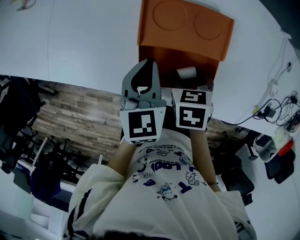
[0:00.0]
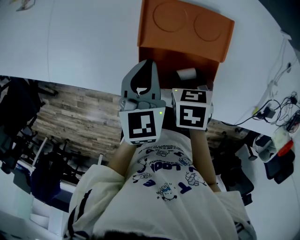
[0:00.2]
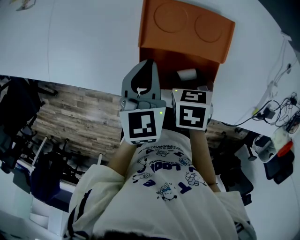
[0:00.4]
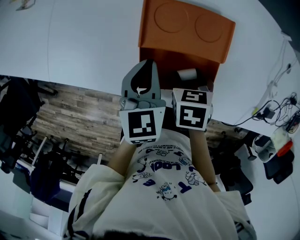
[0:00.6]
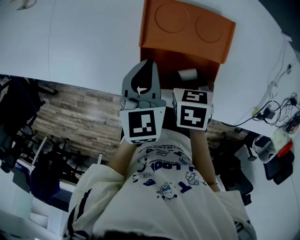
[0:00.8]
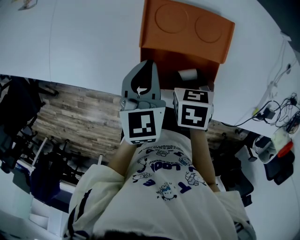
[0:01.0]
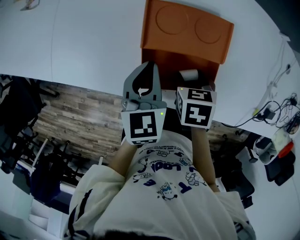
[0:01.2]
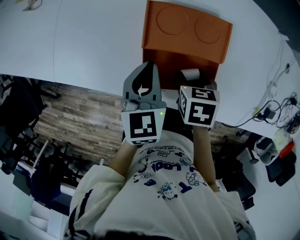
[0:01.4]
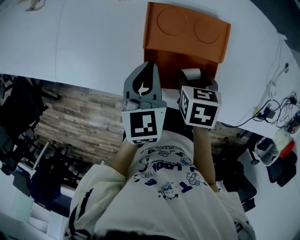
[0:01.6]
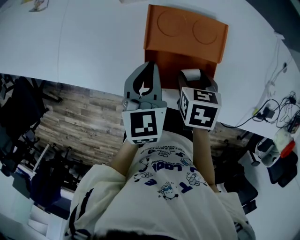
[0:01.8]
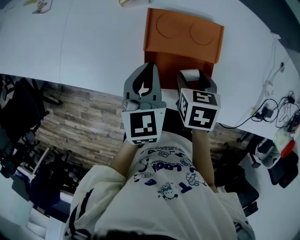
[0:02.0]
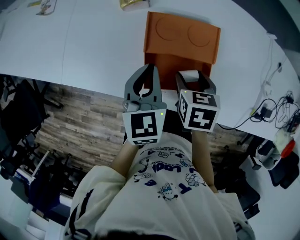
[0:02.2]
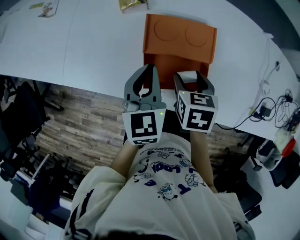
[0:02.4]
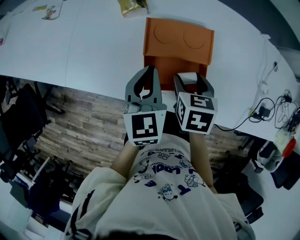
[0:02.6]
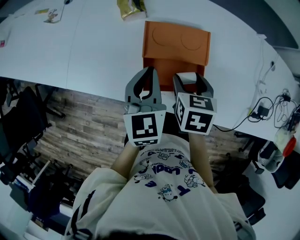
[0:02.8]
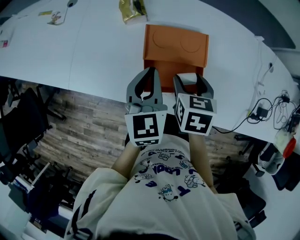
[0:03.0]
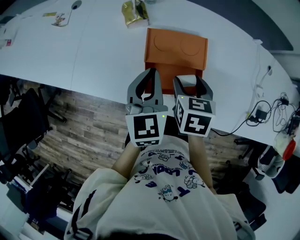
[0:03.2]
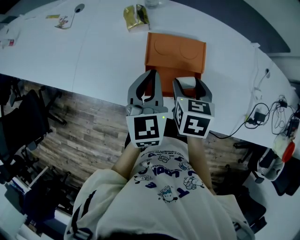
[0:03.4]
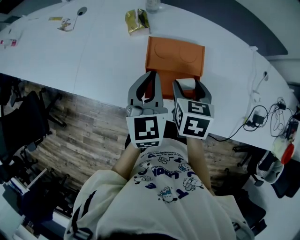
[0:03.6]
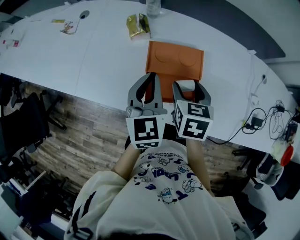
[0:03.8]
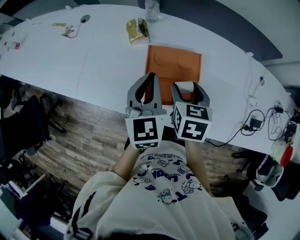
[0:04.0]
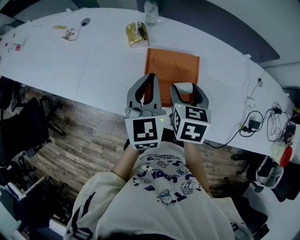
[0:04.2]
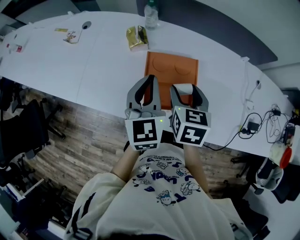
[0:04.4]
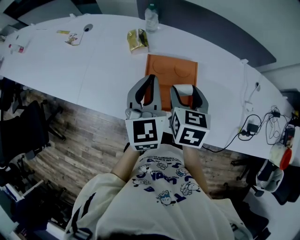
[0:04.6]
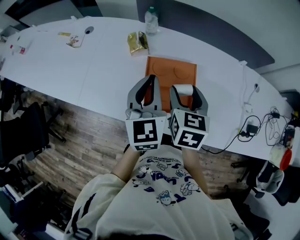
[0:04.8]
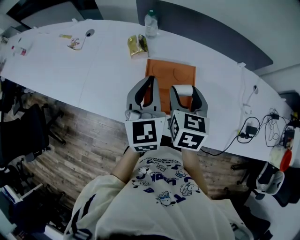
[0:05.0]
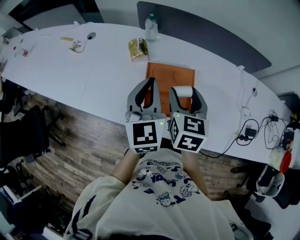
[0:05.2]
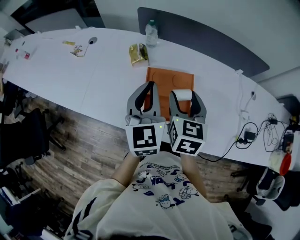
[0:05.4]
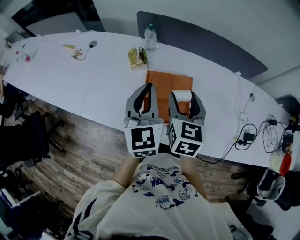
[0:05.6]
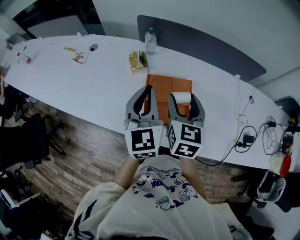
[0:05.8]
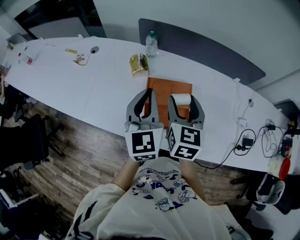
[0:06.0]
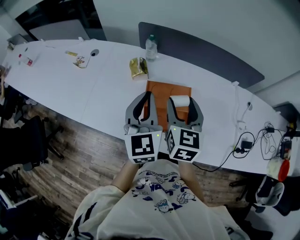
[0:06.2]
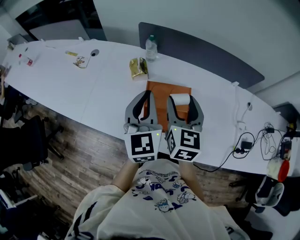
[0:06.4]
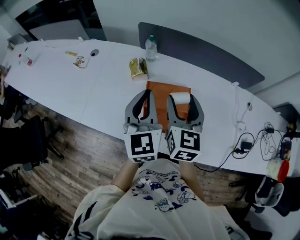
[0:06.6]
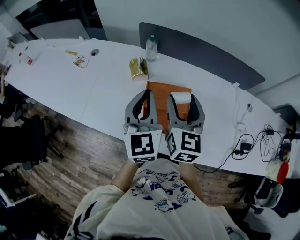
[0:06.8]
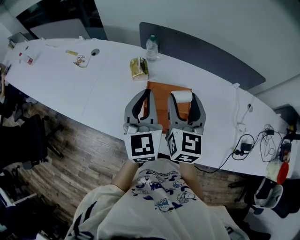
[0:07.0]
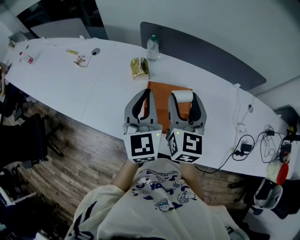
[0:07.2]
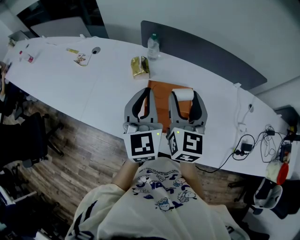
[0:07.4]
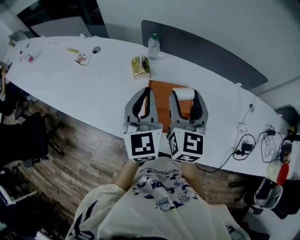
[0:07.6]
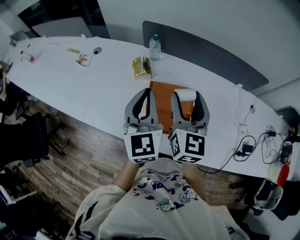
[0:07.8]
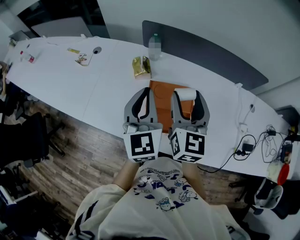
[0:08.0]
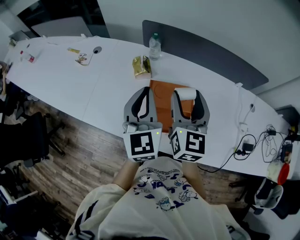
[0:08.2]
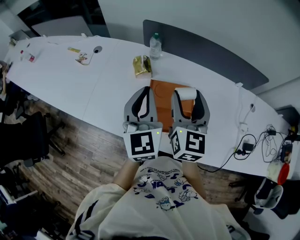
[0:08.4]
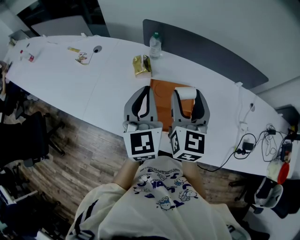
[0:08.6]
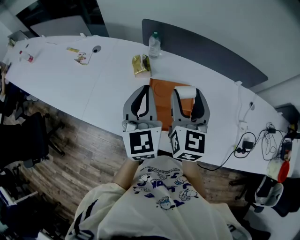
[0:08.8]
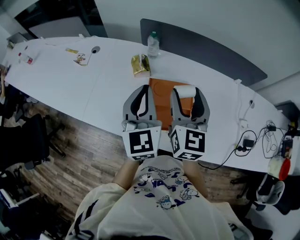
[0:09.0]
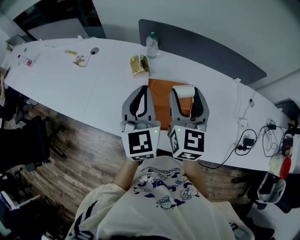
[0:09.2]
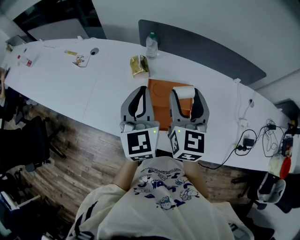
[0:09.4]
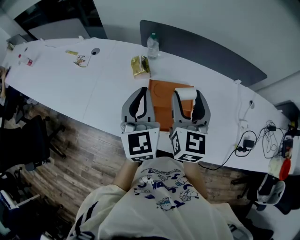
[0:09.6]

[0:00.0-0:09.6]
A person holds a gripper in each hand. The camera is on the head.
0:00.0 to 0:01.6: The grippers make only small movements.
0:01.6 to 0:03.2: Both grippers travel together upward, some 10 cm.
0:03.2 to 0:04.8: The grippers both shift upward by roughly 10 cm.
0:04.8 to 0:06.4: The right gripper heads upward, covering about 5 cm.
0:06.4 to 0:08.0: The grippers stay close to where they were, moving slightly.
0:08.0 to 0:09.6: Neither gripper changes place.

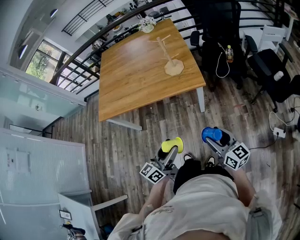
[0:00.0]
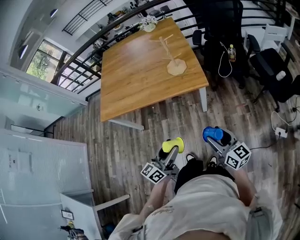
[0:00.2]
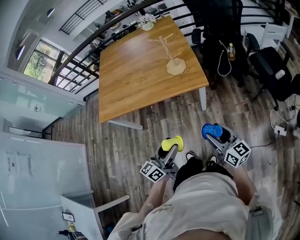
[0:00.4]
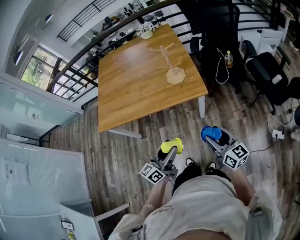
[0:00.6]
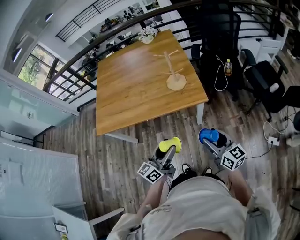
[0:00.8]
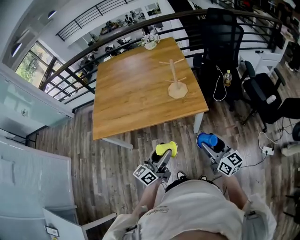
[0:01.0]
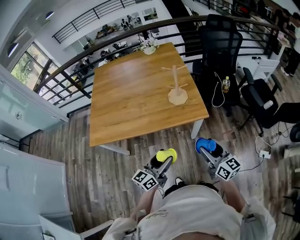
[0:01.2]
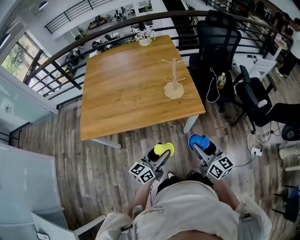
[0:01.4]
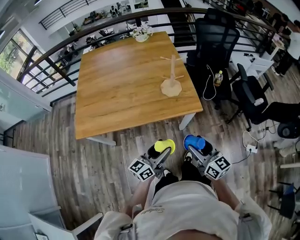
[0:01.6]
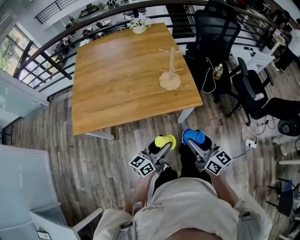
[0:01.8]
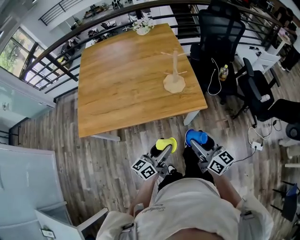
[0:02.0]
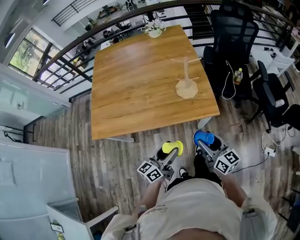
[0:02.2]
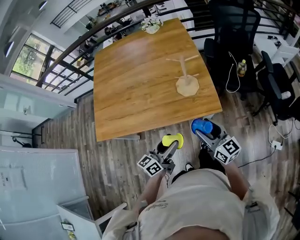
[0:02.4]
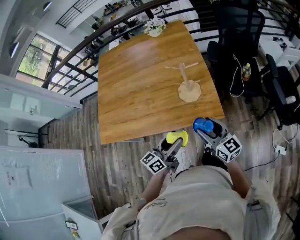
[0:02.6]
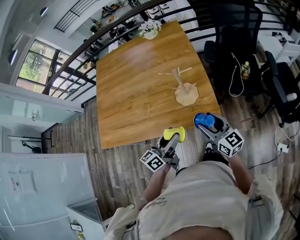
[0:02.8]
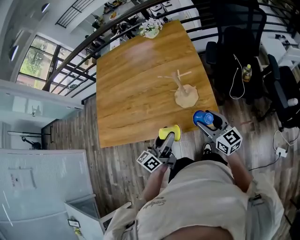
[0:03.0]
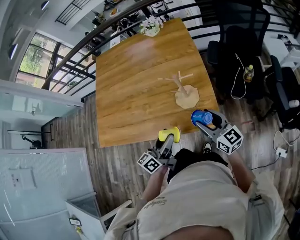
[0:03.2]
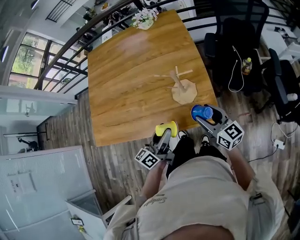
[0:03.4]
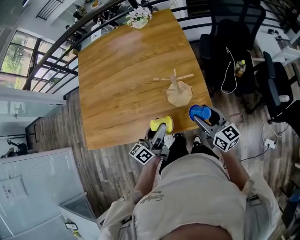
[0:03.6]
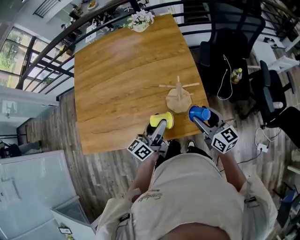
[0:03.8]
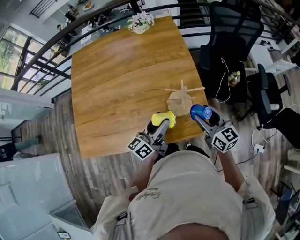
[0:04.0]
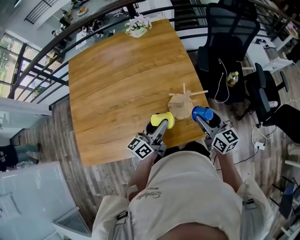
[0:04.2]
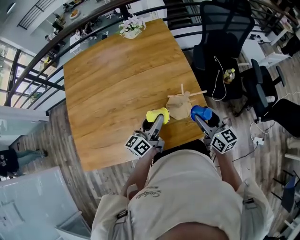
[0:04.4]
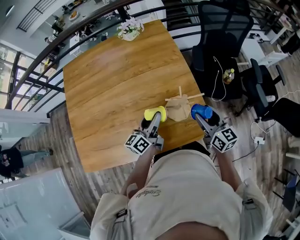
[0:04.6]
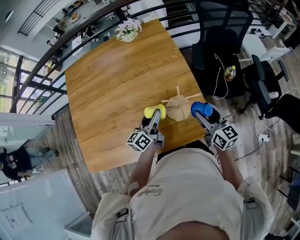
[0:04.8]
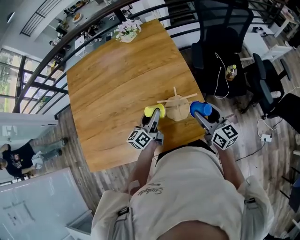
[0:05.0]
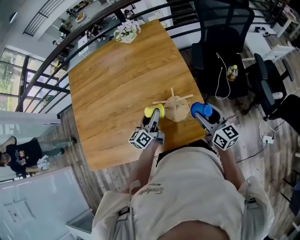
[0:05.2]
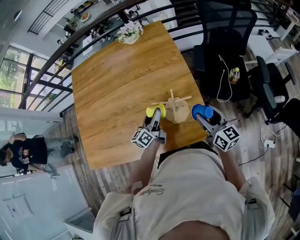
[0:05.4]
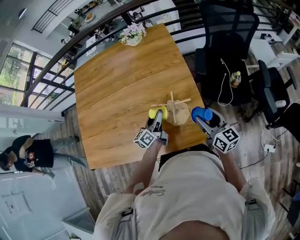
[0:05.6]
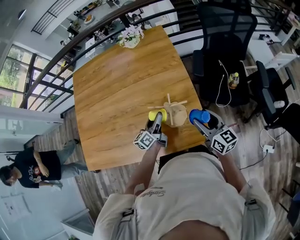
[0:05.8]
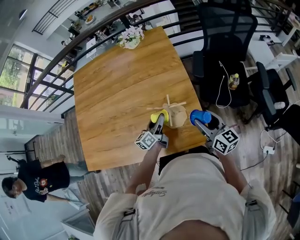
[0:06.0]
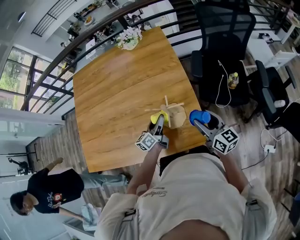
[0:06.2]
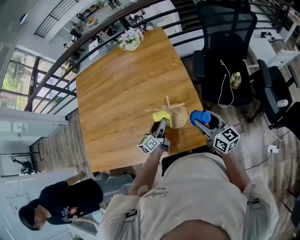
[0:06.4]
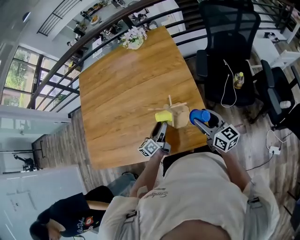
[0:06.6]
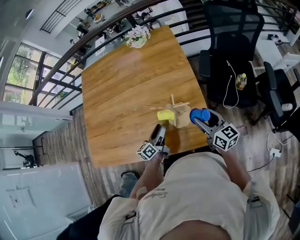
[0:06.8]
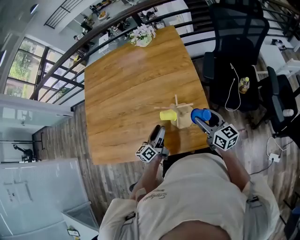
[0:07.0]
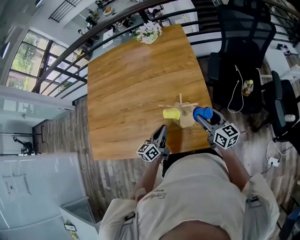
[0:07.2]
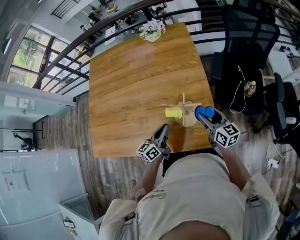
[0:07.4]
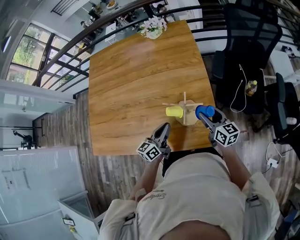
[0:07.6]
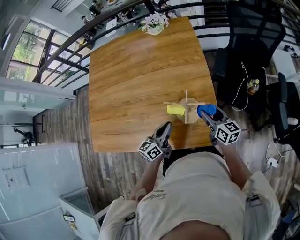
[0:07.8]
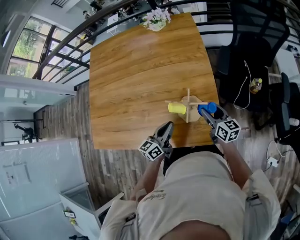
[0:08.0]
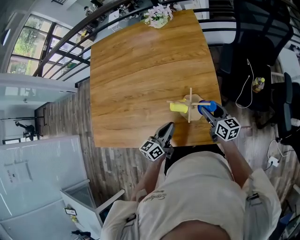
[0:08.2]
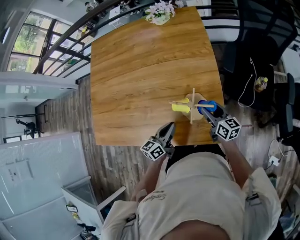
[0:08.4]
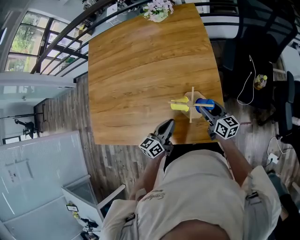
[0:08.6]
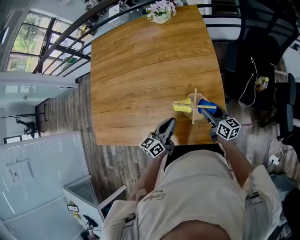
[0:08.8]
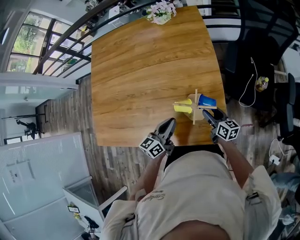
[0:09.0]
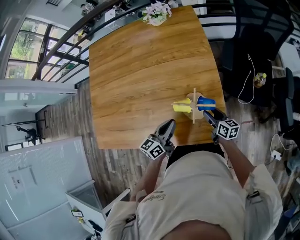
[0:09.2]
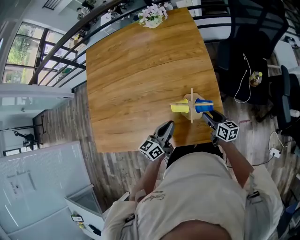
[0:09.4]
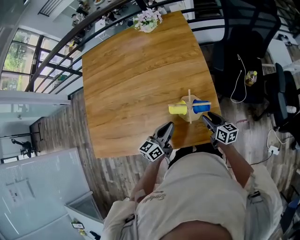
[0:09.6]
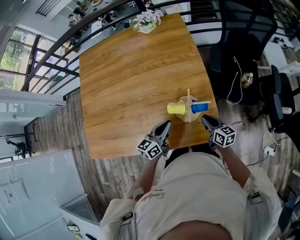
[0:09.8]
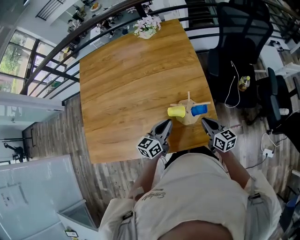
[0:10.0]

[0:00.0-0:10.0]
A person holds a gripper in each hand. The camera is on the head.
0:00.0 to 0:01.4: The grippers both shift forward and to the left by roughly 20 cm.
0:01.4 to 0:02.8: Both grippers travel together forward, about 20 cm.
0:02.8 to 0:04.2: The two grippers go roughly 15 cm forward.
0:04.2 to 0:05.8: The right gripper is displaced to the right by approximately 5 cm. Meanwhile the left gripper heads downward and forward, covering roughly 15 cm.
0:05.8 to 0:07.2: The right gripper changes place by some 5 cm. Meanwhile the left gripper is displaced backward by roughly 5 cm, and closes its fingers.
0:07.2 to 0:08.6: The right gripper goes approximately 10 cm downward.
0:08.6 to 0:10.0: The right gripper goes approximately 5 cm backward, moves roughly 5 cm downward and comes back, and closes up.

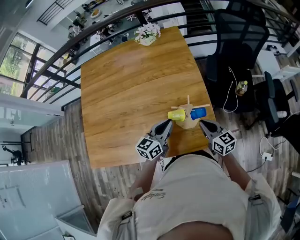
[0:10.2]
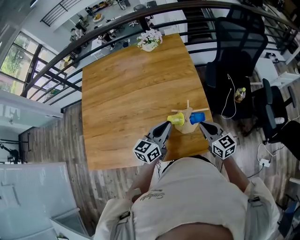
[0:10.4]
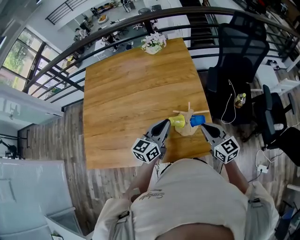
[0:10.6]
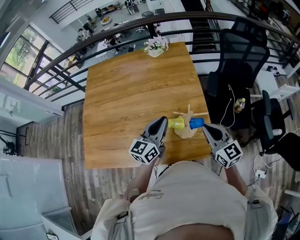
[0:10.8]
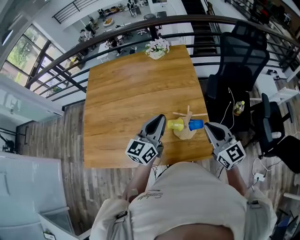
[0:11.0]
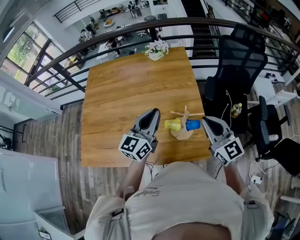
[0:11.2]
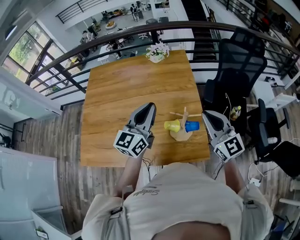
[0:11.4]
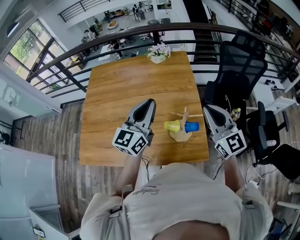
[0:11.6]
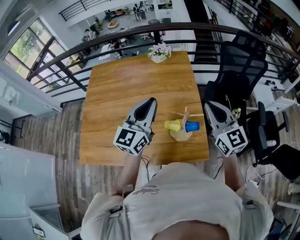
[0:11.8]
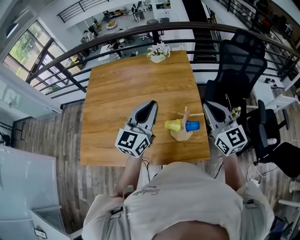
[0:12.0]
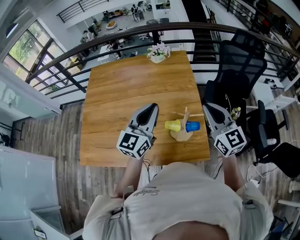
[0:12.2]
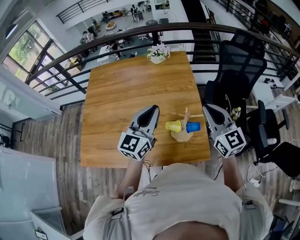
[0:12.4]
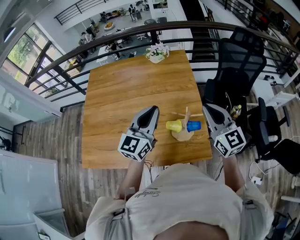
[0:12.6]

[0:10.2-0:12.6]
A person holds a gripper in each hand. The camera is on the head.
0:10.2 to 0:11.4: The grippers both shift upward by roughly 25 cm. The left gripper swivels some 30 degrees. Meanwhile the right gripper turns by about 40 degrees.
0:11.4 to 0:12.6: The grippers stay close to where they were, moving slightly.

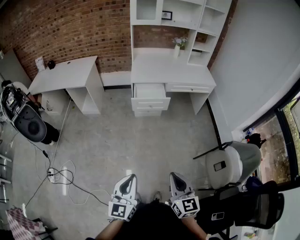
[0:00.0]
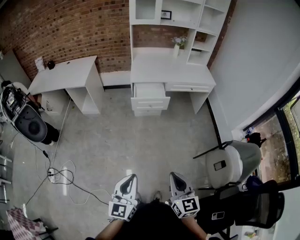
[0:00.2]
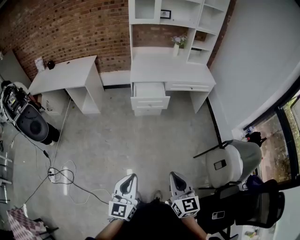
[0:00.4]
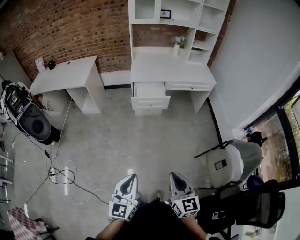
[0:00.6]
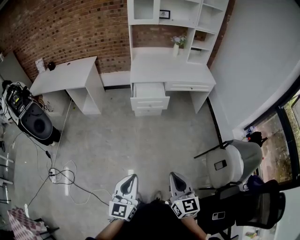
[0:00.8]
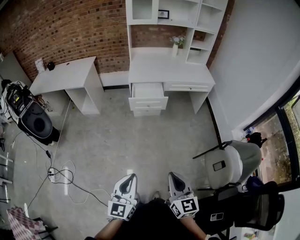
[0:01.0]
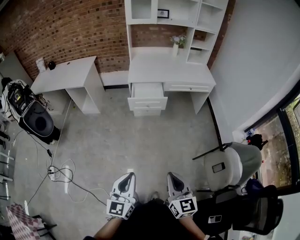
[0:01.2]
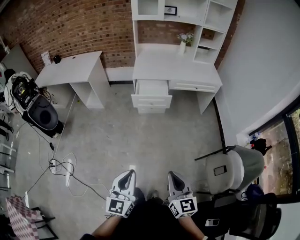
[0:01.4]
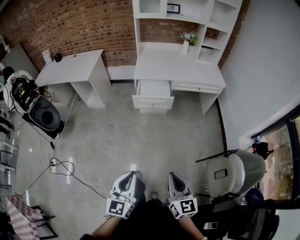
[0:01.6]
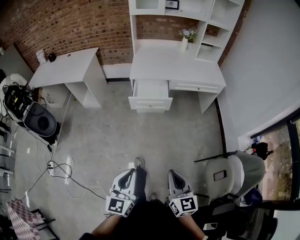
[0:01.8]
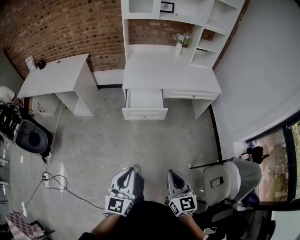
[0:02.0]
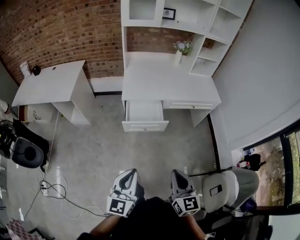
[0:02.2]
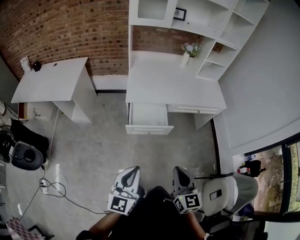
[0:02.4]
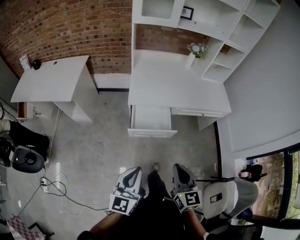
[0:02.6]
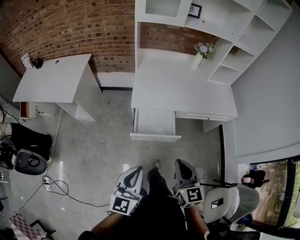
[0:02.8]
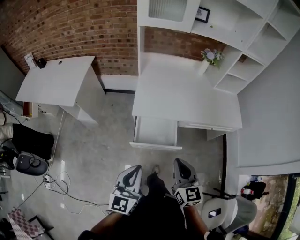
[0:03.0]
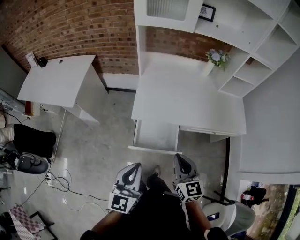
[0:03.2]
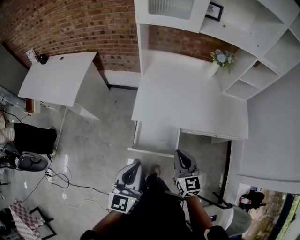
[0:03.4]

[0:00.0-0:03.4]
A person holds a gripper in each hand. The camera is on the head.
0:00.0 to 0:01.6: The two grippers go some 10 cm to the right and forward.
0:01.6 to 0:03.4: The two grippers travel together, forward, approximately 70 cm.
